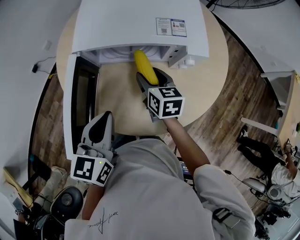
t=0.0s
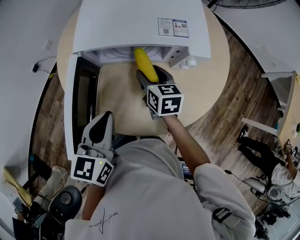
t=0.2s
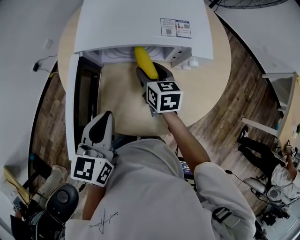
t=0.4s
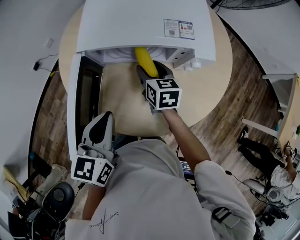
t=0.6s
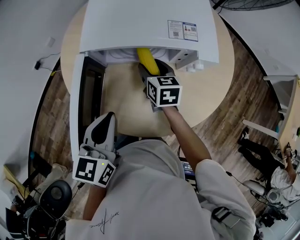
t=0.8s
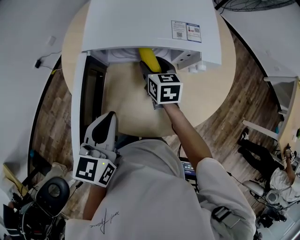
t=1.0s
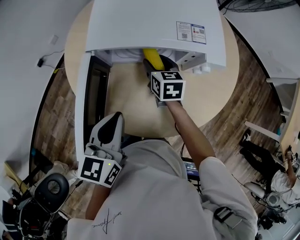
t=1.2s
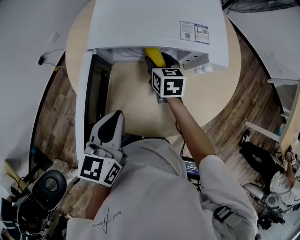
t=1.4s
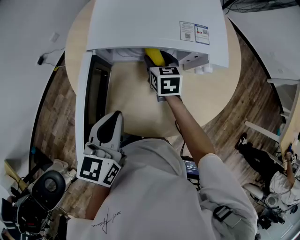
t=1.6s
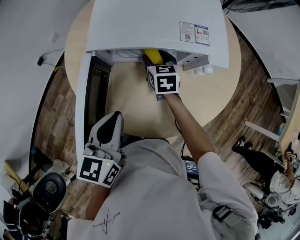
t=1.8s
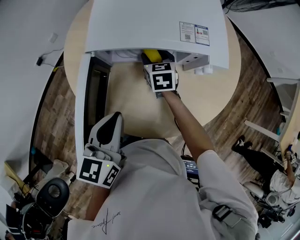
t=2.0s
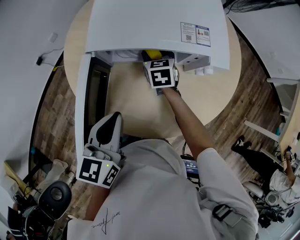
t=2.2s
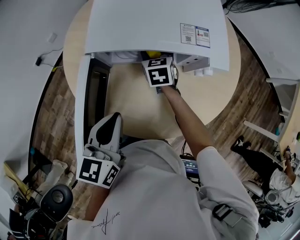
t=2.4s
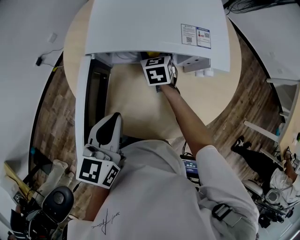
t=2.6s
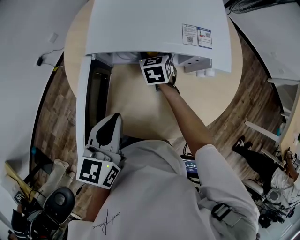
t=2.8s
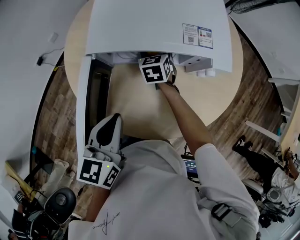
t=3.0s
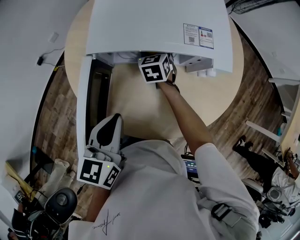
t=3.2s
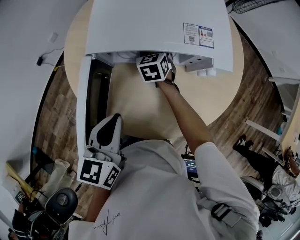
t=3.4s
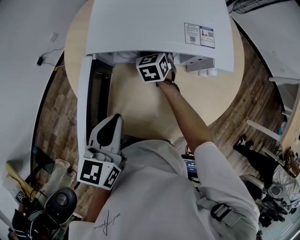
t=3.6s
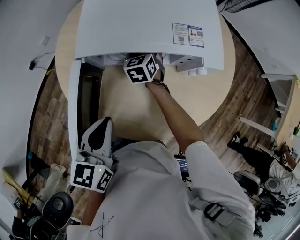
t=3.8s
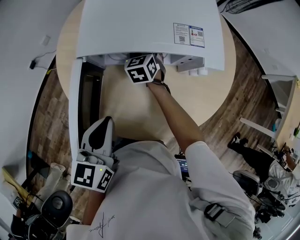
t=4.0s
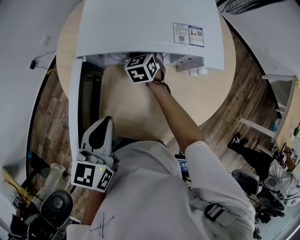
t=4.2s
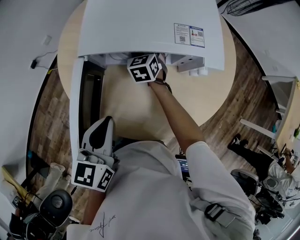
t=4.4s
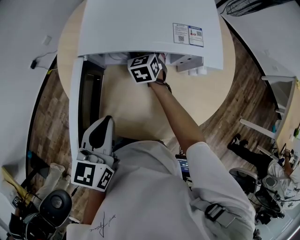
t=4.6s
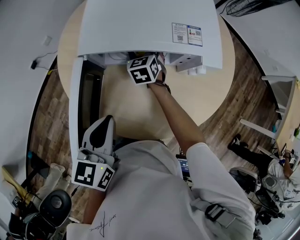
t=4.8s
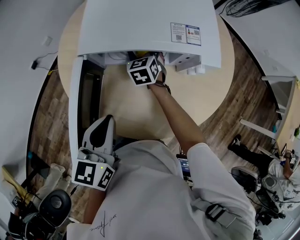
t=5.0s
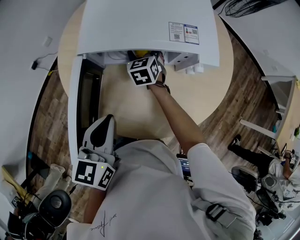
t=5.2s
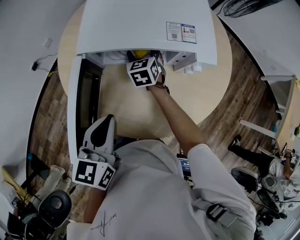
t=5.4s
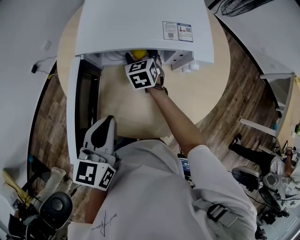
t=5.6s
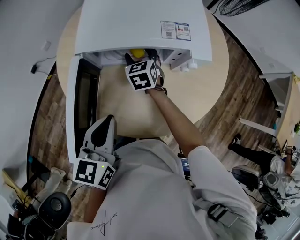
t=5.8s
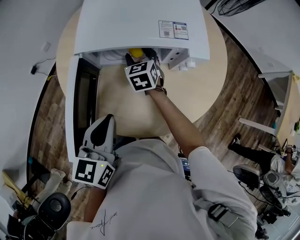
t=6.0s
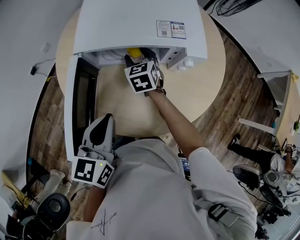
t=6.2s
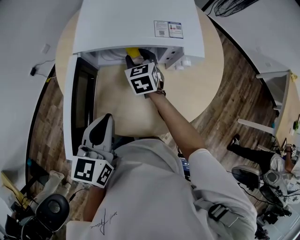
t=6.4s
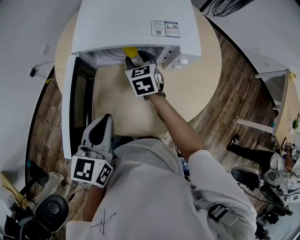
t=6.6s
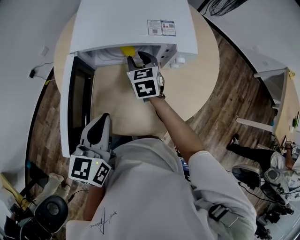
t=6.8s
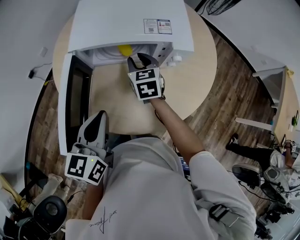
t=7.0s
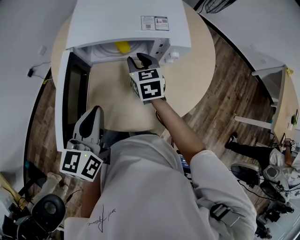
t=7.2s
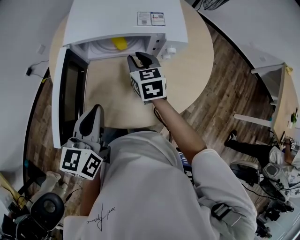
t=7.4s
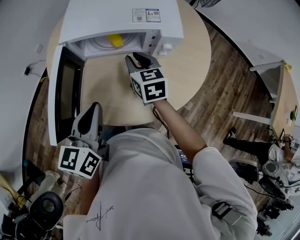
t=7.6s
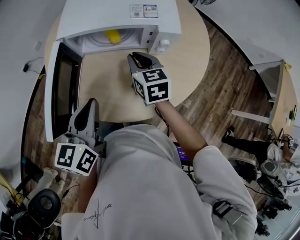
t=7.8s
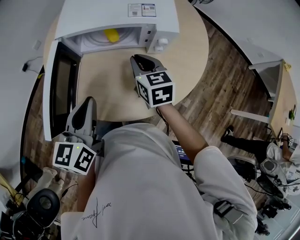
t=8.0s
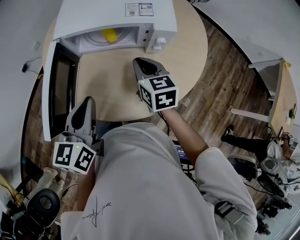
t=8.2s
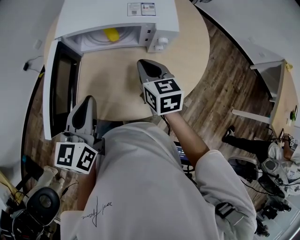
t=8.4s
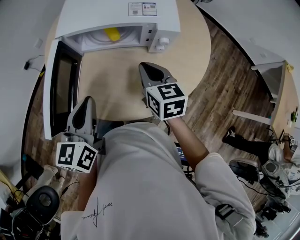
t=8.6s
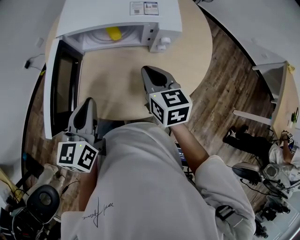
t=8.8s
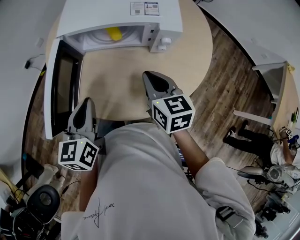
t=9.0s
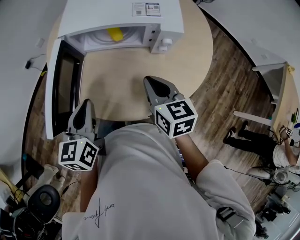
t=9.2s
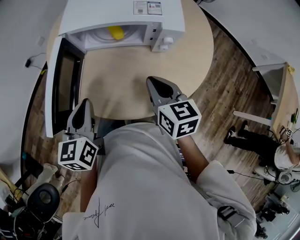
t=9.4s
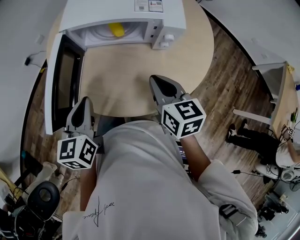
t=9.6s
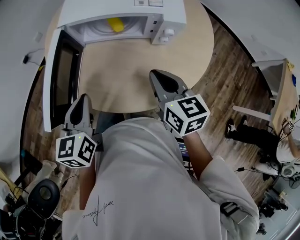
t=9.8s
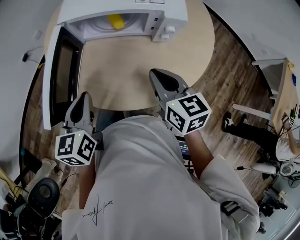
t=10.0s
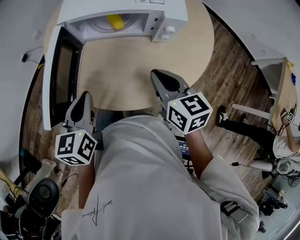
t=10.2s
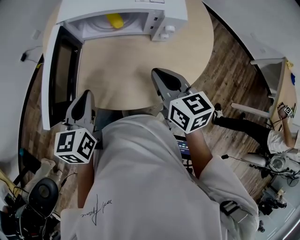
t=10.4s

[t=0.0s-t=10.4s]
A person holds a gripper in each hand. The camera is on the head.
t=0.0s to t=1.4s: The right gripper moves forward, about 10 cm.
t=1.4s to t=3.0s: The right gripper heads forward, covering approximately 5 cm, and changes its angle by roughly 20 degrees.
t=3.0s to t=4.4s: The grippers move only a little.
t=4.4s to t=6.0s: The right gripper travels backward by approximately 5 cm.
t=6.0s to t=7.4s: The right gripper travels backward, to the right and upward by approximately 15 cm, and closes.
t=7.4s to t=9.0s: The right gripper moves backward and to the right, some 15 cm.
t=9.0s to t=10.4s: There are only small adjustments of the grippers.

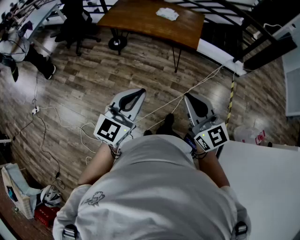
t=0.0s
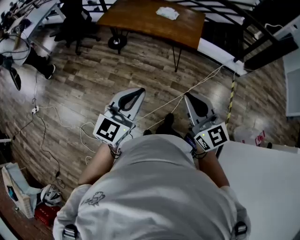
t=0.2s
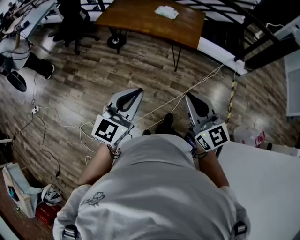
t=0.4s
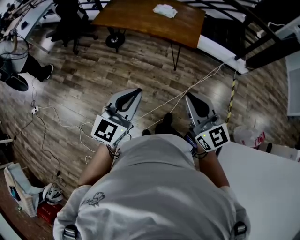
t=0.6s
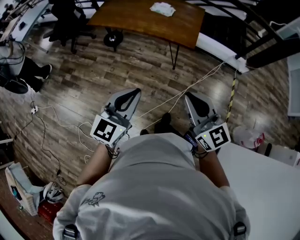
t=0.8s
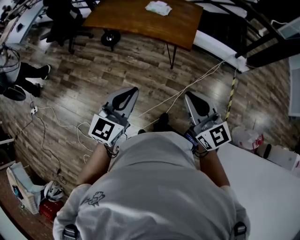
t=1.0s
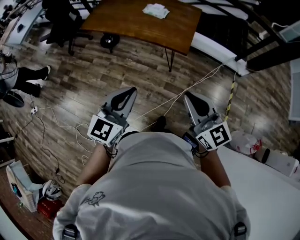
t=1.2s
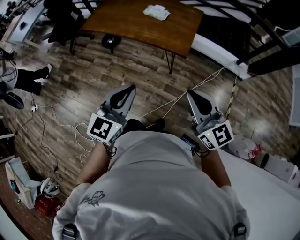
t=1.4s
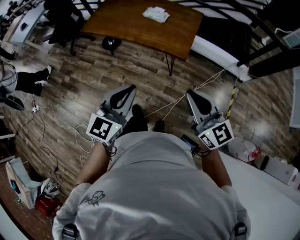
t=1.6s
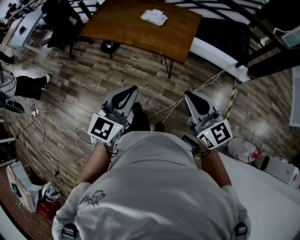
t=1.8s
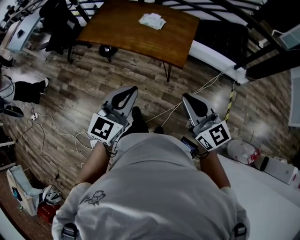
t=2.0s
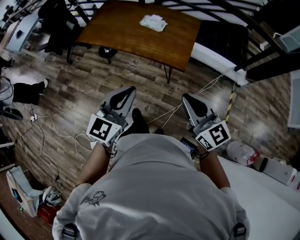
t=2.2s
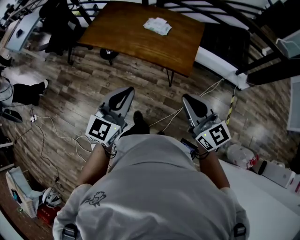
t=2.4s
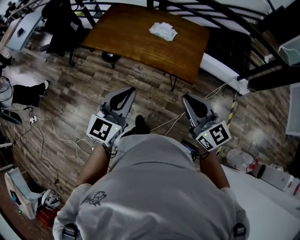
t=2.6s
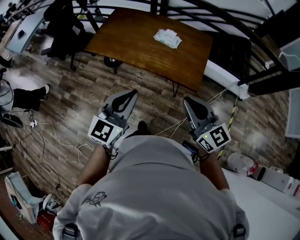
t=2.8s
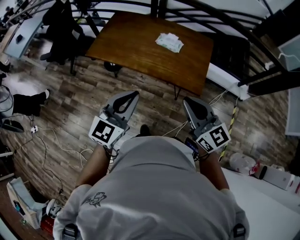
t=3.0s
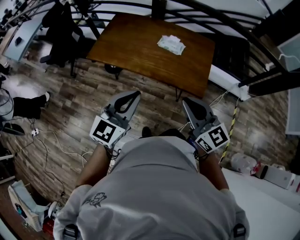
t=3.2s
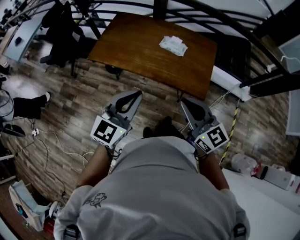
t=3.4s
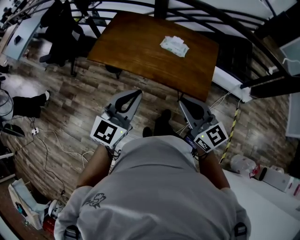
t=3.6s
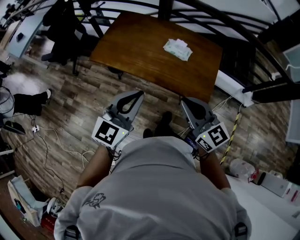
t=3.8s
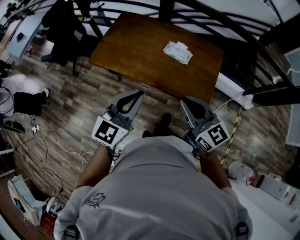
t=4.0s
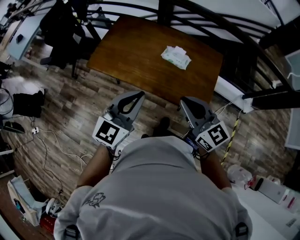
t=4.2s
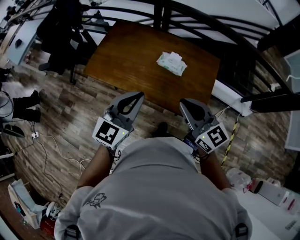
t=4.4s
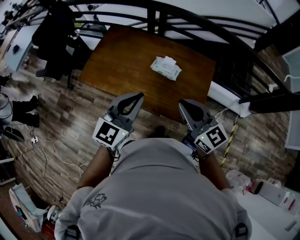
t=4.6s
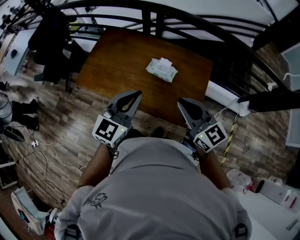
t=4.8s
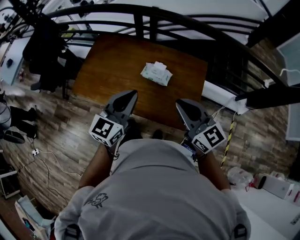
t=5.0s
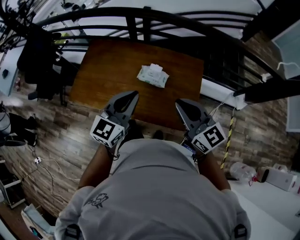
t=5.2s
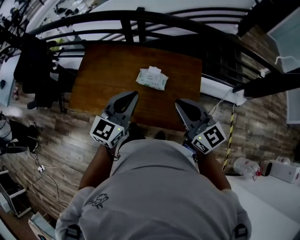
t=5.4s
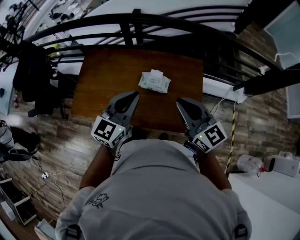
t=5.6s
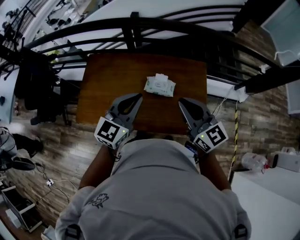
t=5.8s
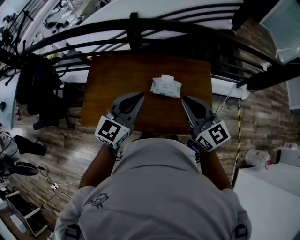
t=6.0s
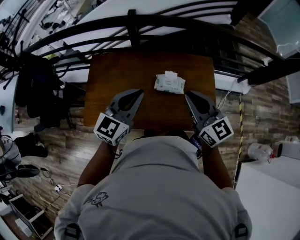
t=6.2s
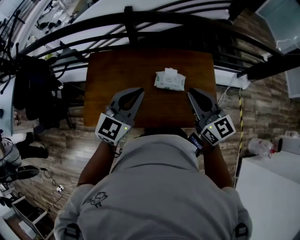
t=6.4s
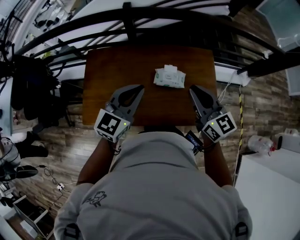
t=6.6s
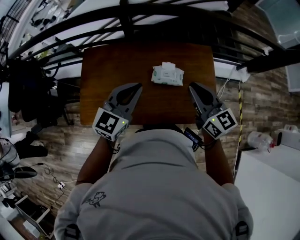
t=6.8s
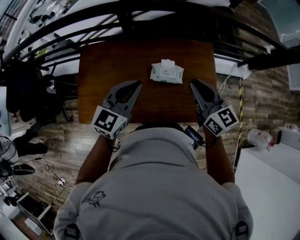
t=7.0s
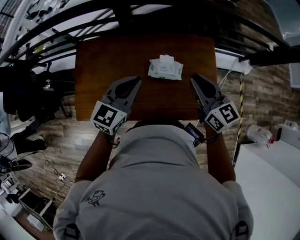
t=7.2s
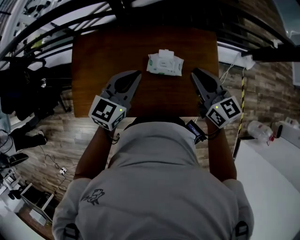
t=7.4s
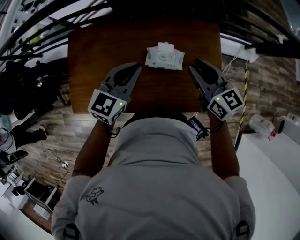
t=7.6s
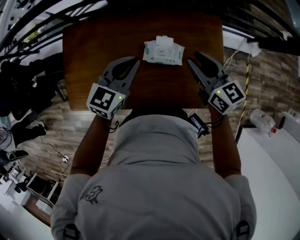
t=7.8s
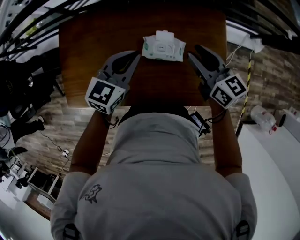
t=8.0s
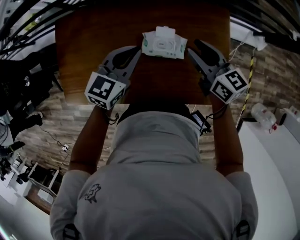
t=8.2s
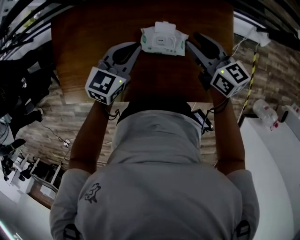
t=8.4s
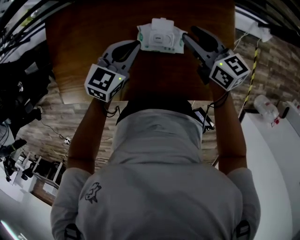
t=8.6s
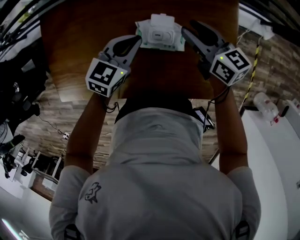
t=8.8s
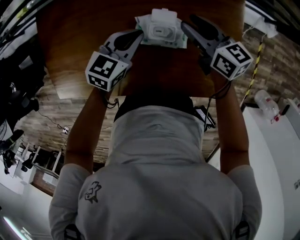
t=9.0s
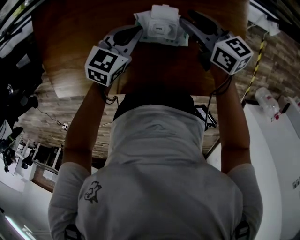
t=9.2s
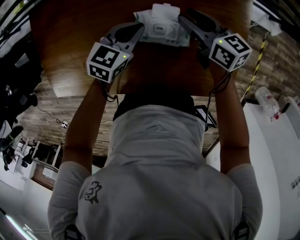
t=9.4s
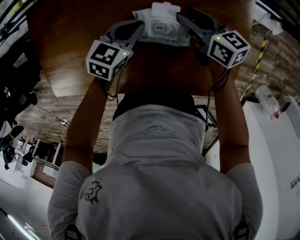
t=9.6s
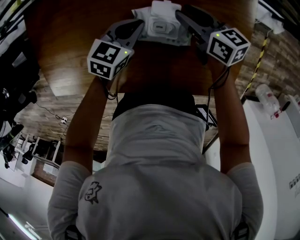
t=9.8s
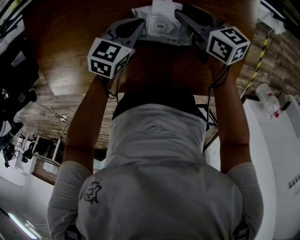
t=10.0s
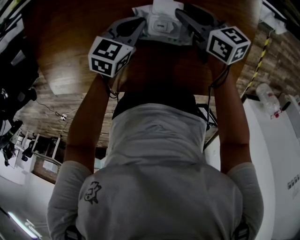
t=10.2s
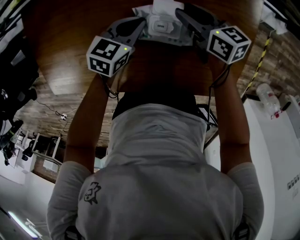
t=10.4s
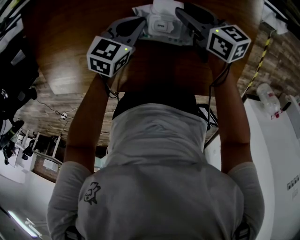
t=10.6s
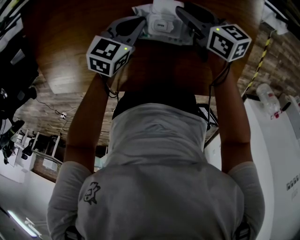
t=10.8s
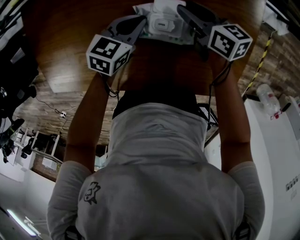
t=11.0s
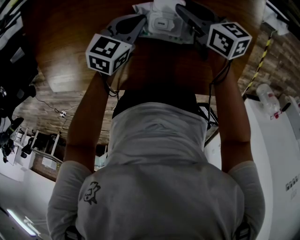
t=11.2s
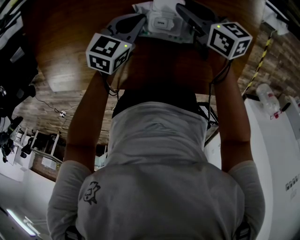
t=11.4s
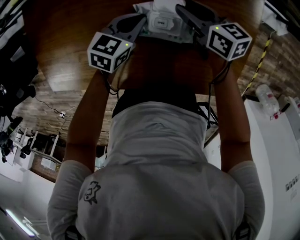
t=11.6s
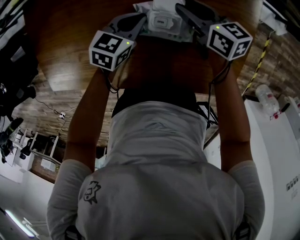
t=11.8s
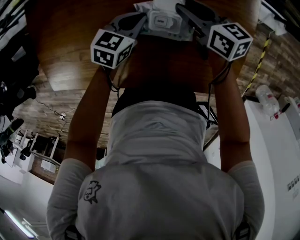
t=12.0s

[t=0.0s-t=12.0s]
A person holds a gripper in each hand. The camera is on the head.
t=0.0s to t=1.6s: The two grippers go about 25 cm forward and to the right.
t=1.6s to t=3.0s: The grippers both shift forward and to the left by about 25 cm.
t=3.0s to t=4.4s: Both grippers travel together forward, some 20 cm.
t=4.4s to t=6.0s: Both grippers move forward, approximately 20 cm. The right gripper changes its angle by approximately 20 degrees.
t=6.0s to t=7.6s: The two grippers go roughly 15 cm forward and downward.
t=7.6s to t=9.0s: The right gripper is displaced downward and forward by about 20 cm, and turns by roughly 20 degrees. Meanwhile the left gripper moves downward, approximately 20 cm.
t=9.0s to t=10.4s: Both grippers travel together downward, some 10 cm.
t=10.4s to t=12.0s: The grippers make only small movements.

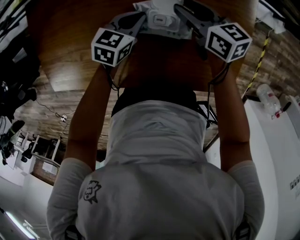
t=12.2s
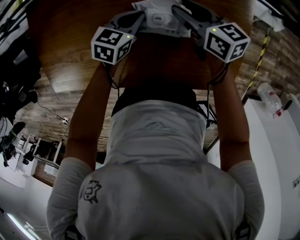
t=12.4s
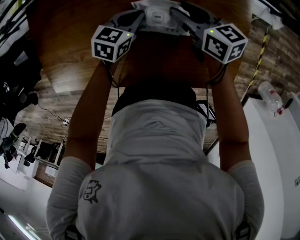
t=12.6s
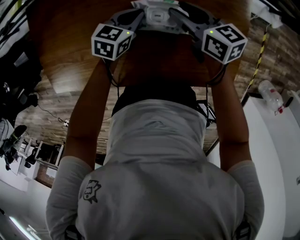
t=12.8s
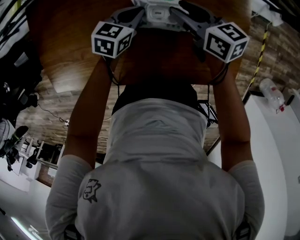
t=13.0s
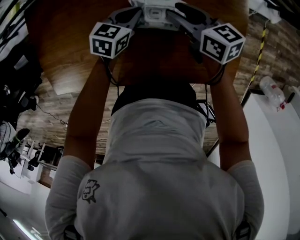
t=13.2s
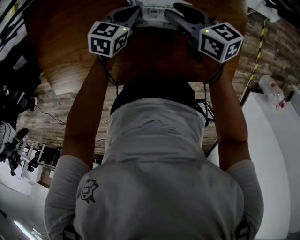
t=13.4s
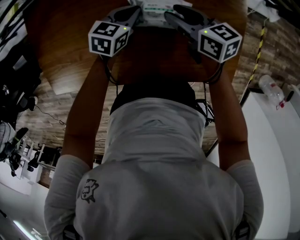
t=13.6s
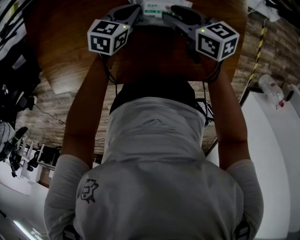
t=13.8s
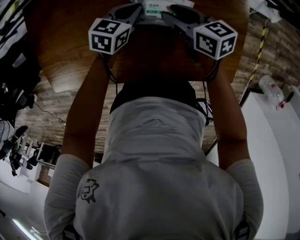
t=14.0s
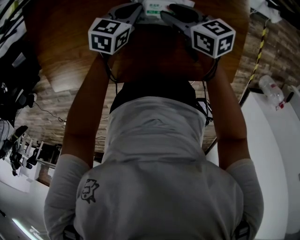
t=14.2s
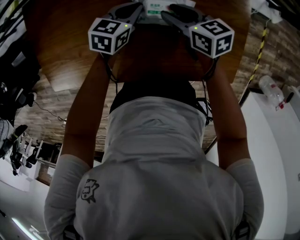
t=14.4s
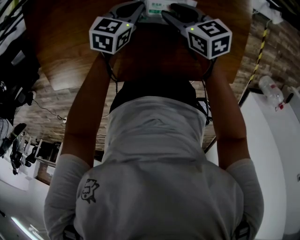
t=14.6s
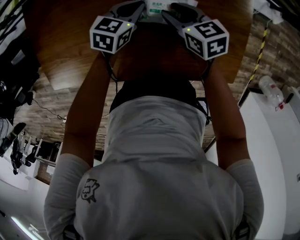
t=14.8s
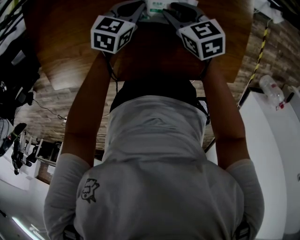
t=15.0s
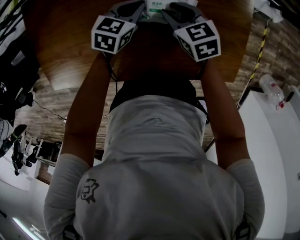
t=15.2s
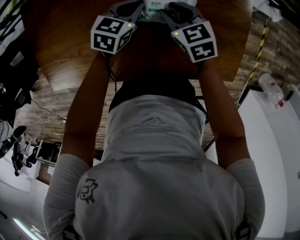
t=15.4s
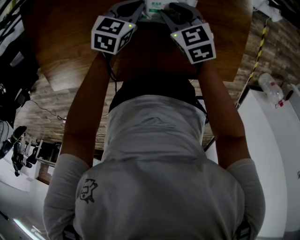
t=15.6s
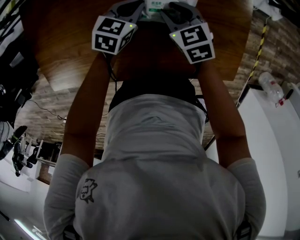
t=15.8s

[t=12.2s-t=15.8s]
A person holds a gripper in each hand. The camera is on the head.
t=12.2s to t=14.0s: The right gripper goes approximately 5 cm backward.
t=14.0s to t=15.8s: The right gripper turns by approximately 30 degrees.
